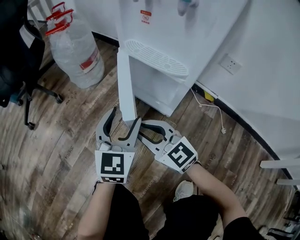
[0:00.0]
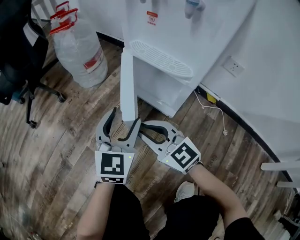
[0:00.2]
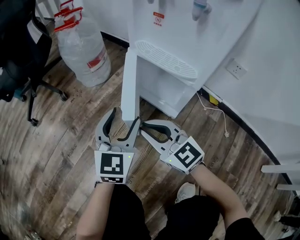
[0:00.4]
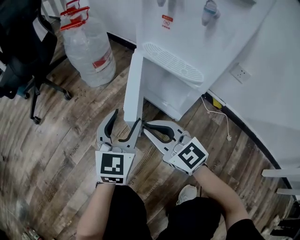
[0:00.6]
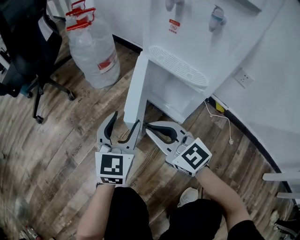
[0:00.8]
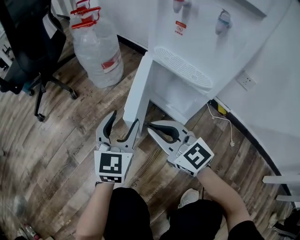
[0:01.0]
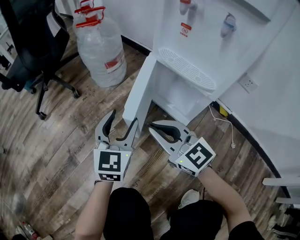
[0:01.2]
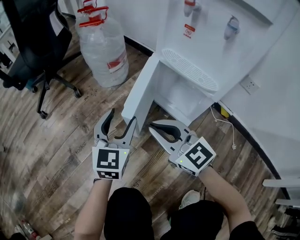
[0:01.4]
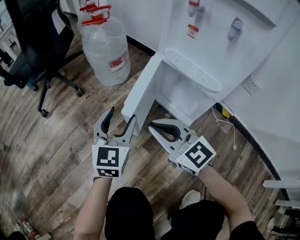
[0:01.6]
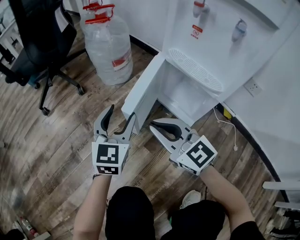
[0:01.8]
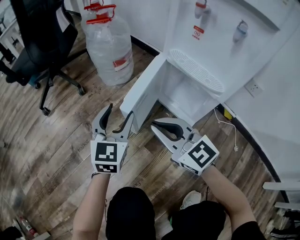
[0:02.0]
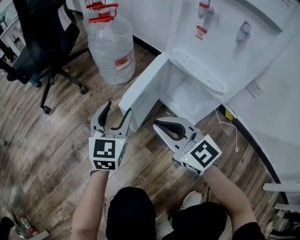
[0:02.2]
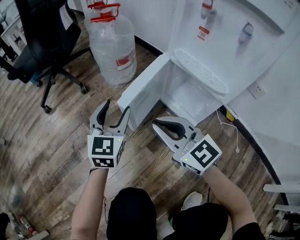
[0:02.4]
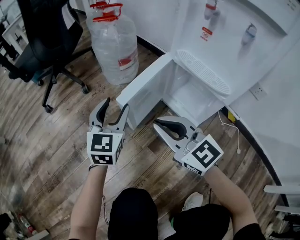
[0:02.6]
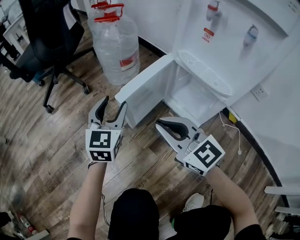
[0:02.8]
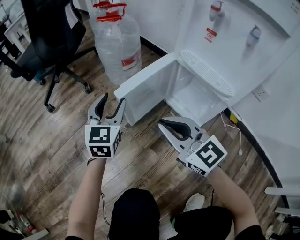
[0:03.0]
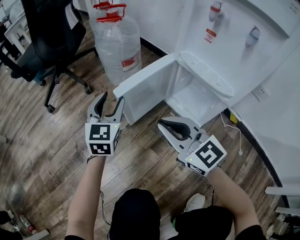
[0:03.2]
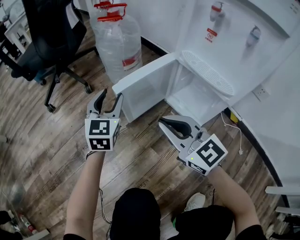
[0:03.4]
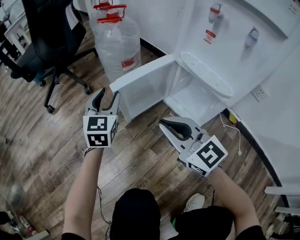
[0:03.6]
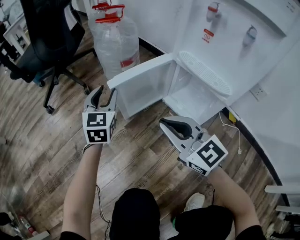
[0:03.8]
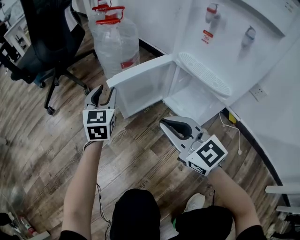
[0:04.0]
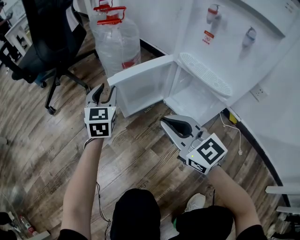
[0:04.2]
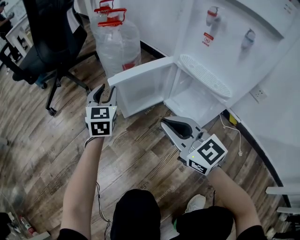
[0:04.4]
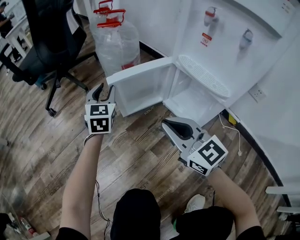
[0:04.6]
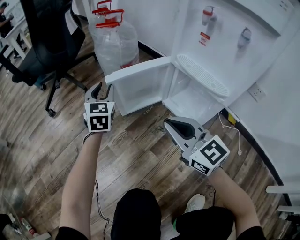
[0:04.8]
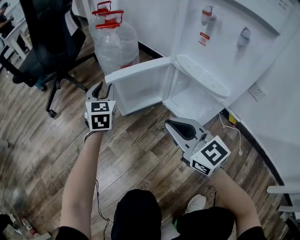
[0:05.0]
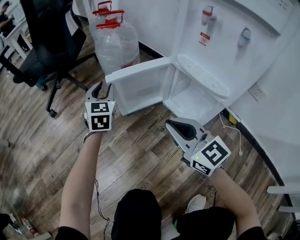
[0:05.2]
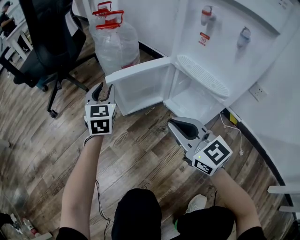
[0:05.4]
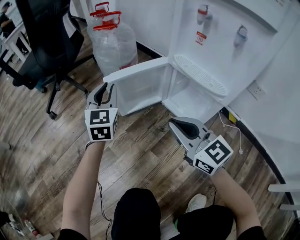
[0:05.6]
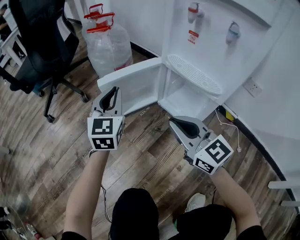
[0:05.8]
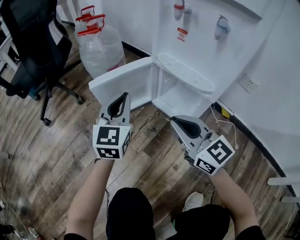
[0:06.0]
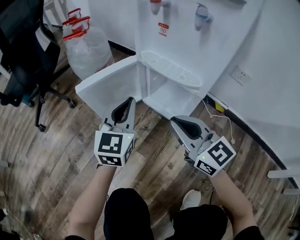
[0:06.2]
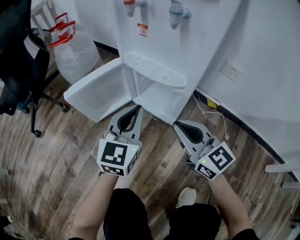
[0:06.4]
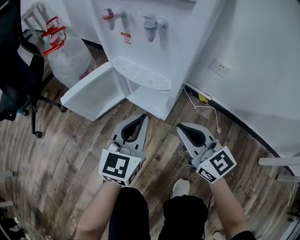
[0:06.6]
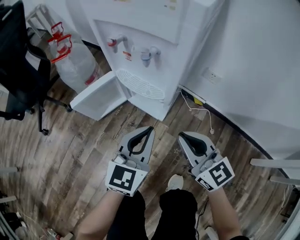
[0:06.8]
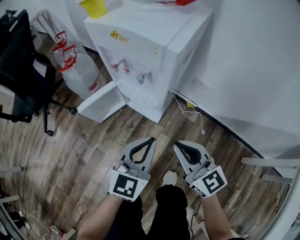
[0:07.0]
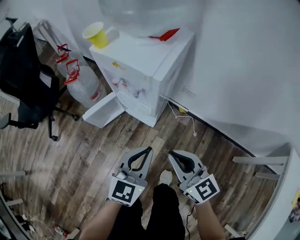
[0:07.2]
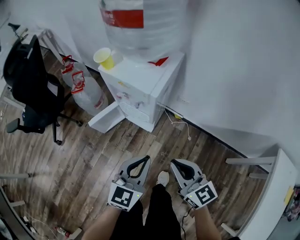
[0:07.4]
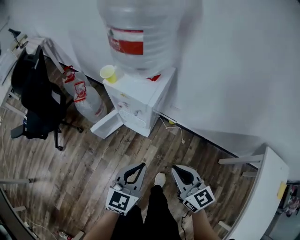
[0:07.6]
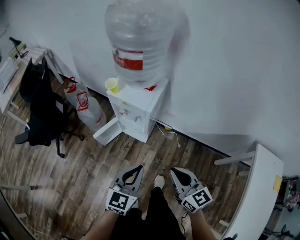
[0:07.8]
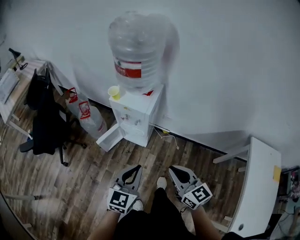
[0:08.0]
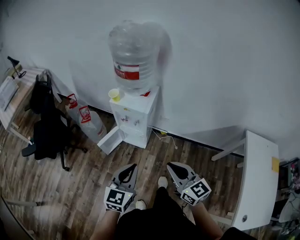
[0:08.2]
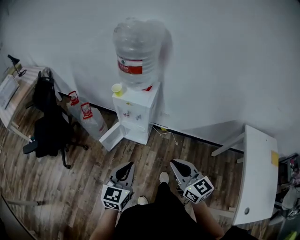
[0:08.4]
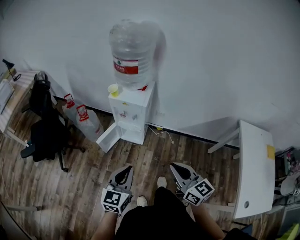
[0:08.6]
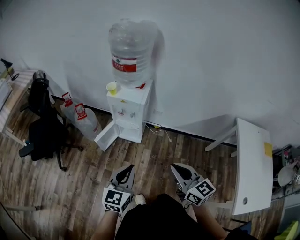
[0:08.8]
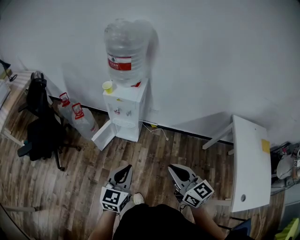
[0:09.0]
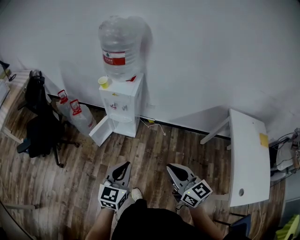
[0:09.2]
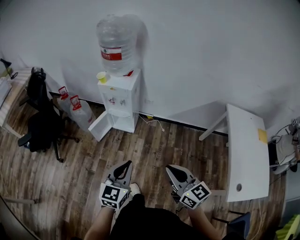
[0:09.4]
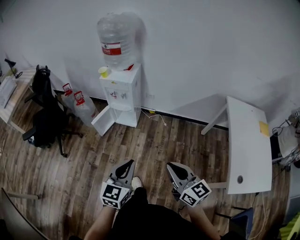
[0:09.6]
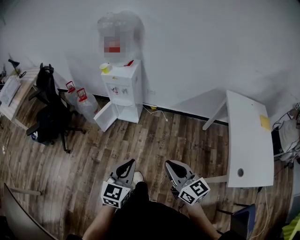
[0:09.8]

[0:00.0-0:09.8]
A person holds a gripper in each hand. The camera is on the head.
0:00.0 to 0:01.4: The left gripper goes about 10 cm to the left. The right gripper travels upward by some 5 cm.
0:01.4 to 0:02.8: The left gripper moves forward and to the left, roughly 10 cm.
0:02.8 to 0:04.2: The left gripper goes roughly 10 cm forward.
0:04.2 to 0:05.6: The grippers stay close to where they were, moving slightly.
0:05.6 to 0:07.0: The left gripper moves roughly 50 cm, and rotates roughly 40 degrees, while the right gripper moves some 30 cm.
0:07.0 to 0:08.4: The grippers both shift upward and backward by approximately 50 cm.
0:08.4 to 0:09.8: The grippers both shift backward by about 30 cm.

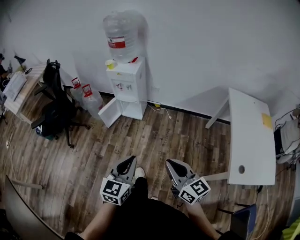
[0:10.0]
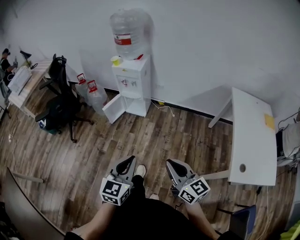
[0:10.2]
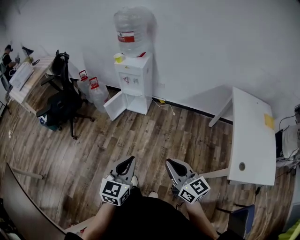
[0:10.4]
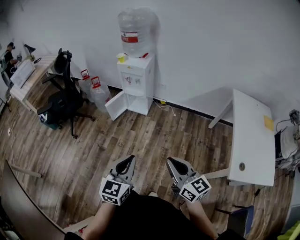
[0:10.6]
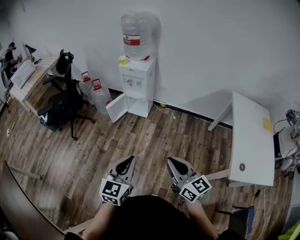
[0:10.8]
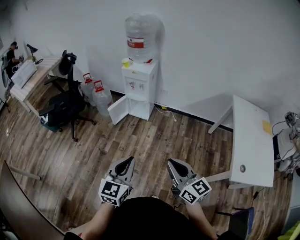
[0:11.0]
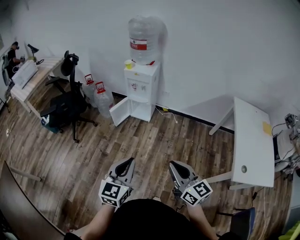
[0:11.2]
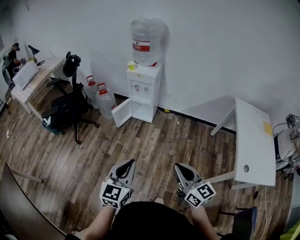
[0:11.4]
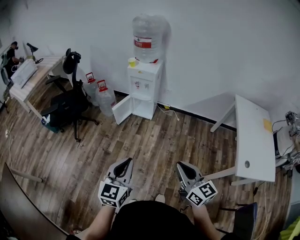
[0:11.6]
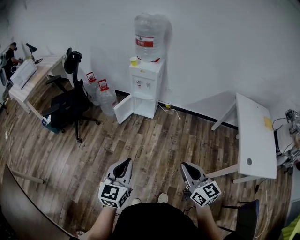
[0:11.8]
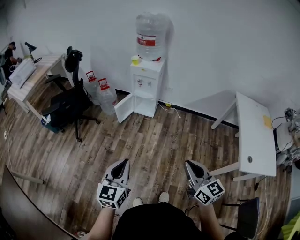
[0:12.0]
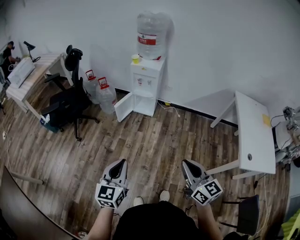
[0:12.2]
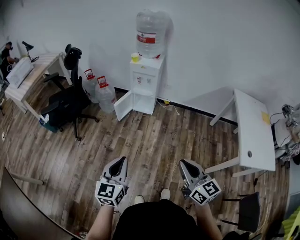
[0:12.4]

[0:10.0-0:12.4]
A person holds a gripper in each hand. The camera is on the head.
0:10.0 to 0:11.2: Both grippers travel together to the left and backward, some 15 cm.
0:11.2 to 0:12.4: The right gripper travels to the left by some 10 cm. The left gripper is displaced to the left by roughly 15 cm.

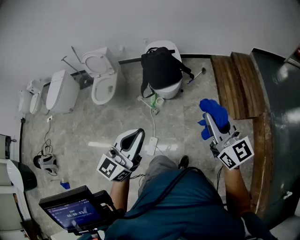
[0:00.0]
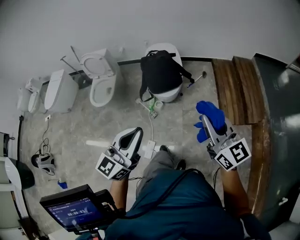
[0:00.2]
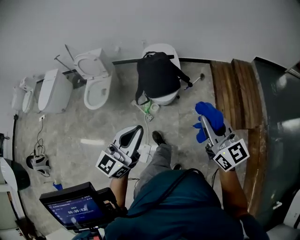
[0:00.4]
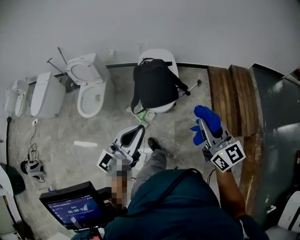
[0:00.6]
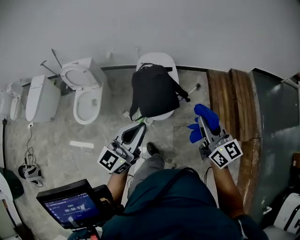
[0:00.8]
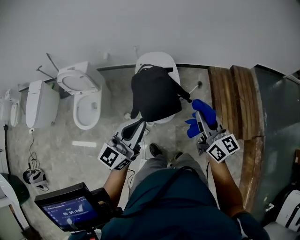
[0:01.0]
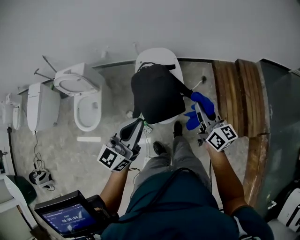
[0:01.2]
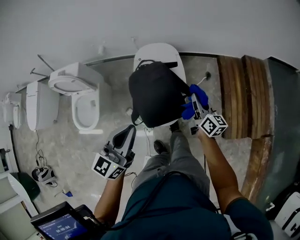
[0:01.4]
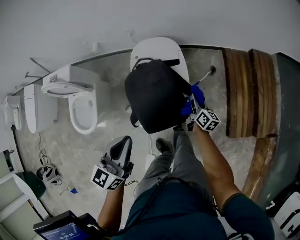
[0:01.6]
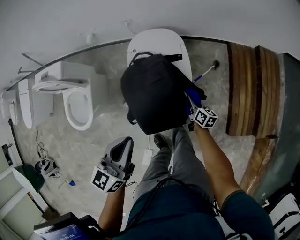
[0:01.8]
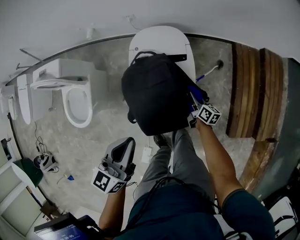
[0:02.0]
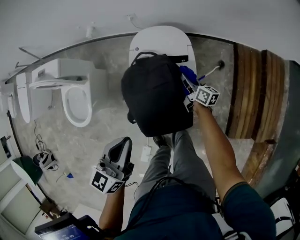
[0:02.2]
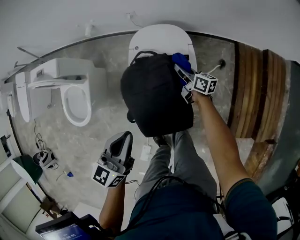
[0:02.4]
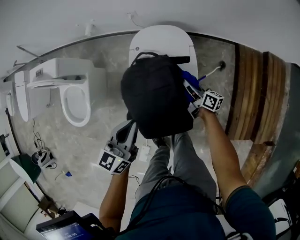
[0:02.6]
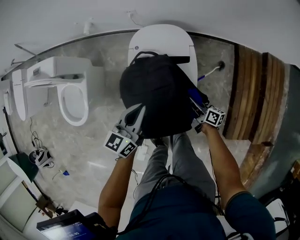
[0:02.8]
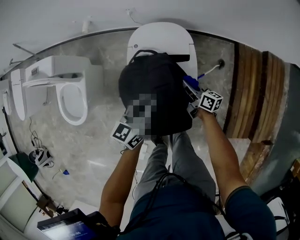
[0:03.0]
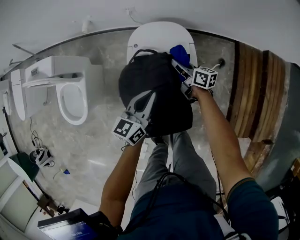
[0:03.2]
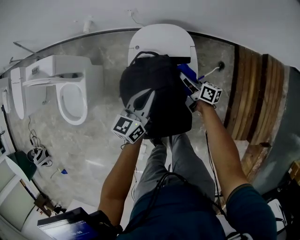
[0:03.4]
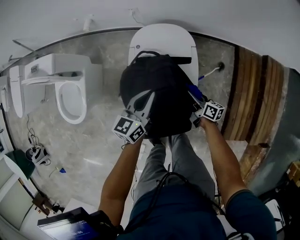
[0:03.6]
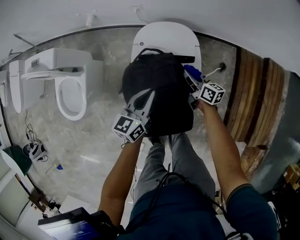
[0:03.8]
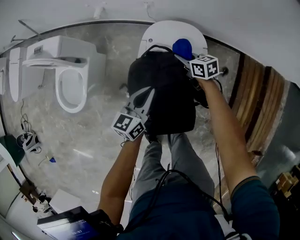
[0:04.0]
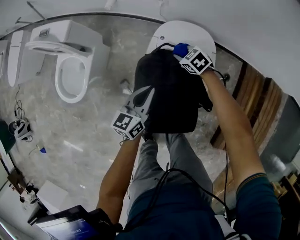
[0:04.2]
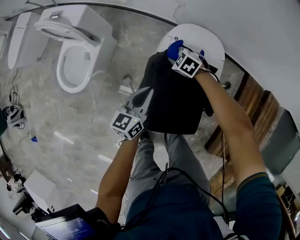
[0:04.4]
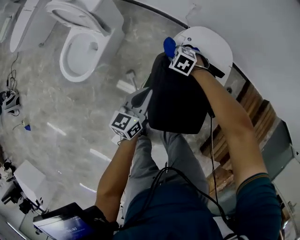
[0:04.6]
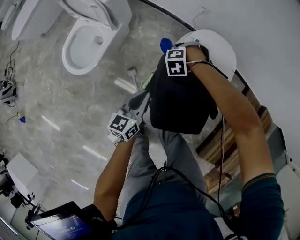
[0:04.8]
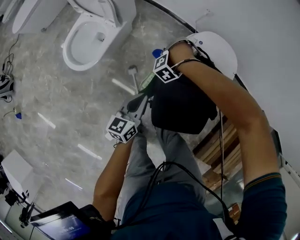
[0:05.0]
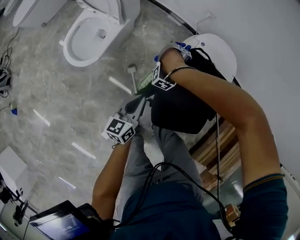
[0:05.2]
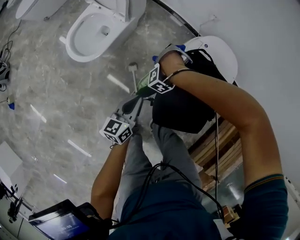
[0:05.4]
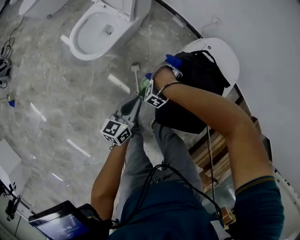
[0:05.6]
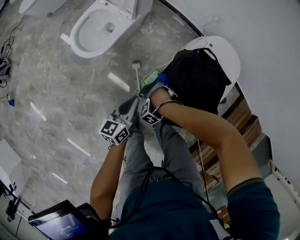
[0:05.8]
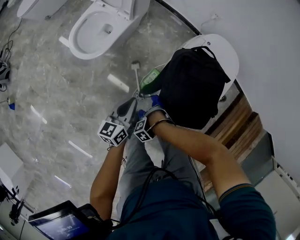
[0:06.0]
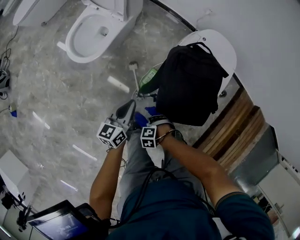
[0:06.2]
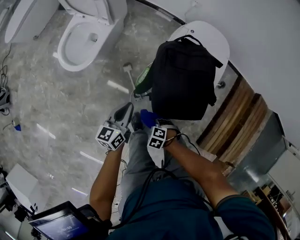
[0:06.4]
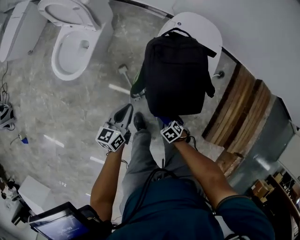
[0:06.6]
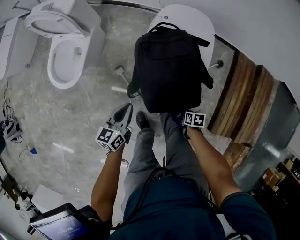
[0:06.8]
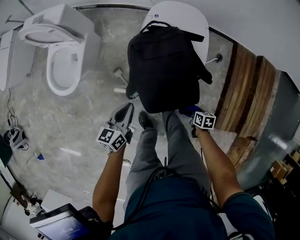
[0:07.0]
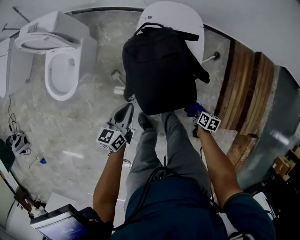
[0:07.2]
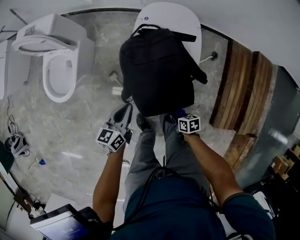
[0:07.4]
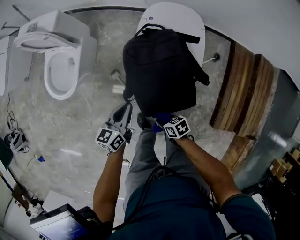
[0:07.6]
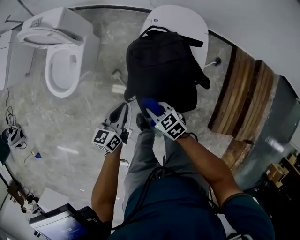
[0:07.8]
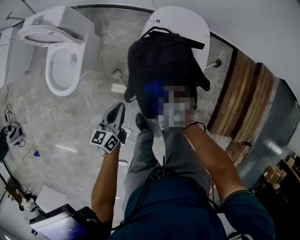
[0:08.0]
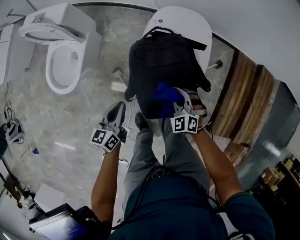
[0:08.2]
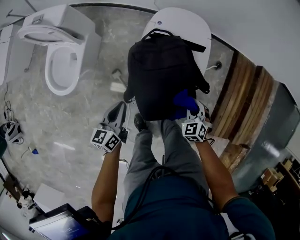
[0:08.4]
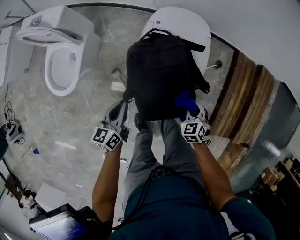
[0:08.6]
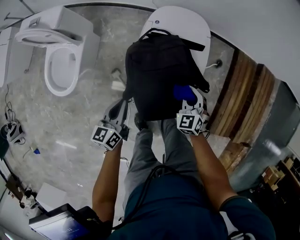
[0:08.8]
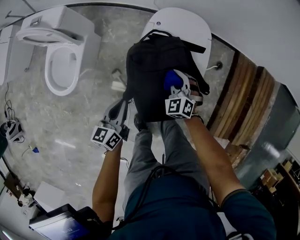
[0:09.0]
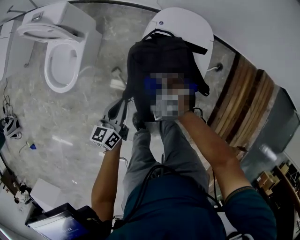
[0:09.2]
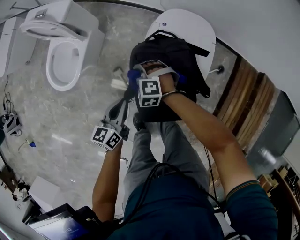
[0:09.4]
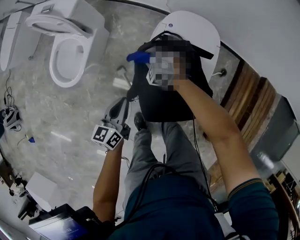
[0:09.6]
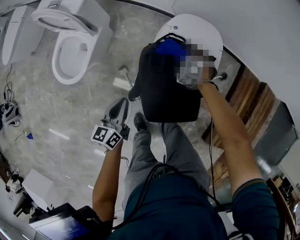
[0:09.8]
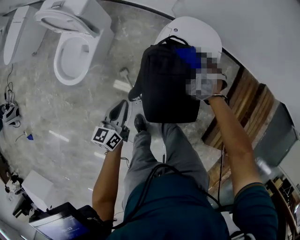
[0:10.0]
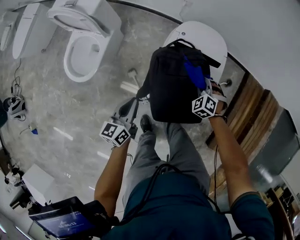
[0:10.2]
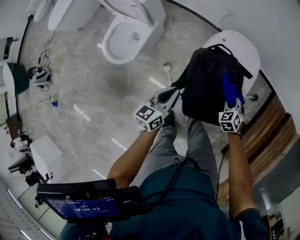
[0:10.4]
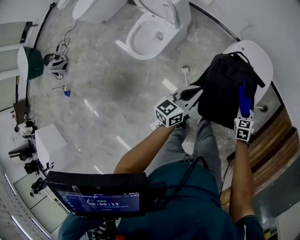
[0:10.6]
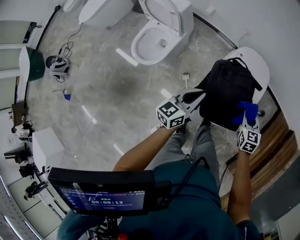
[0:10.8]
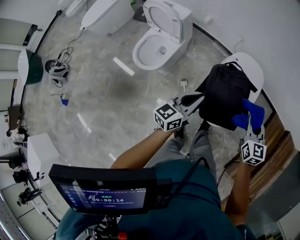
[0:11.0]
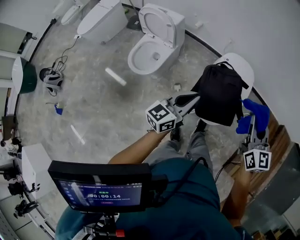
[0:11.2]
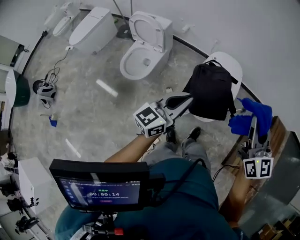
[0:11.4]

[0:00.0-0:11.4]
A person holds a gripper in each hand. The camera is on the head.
0:00.0 to 0:01.4: The two grippers travel together, forward, some 50 cm. The right gripper moves downward, about 30 cm, and changes its angle by approximately 40 degrees.
0:01.4 to 0:02.8: The left gripper heads downward and forward, covering roughly 30 cm; the right gripper goes up and down, about 30 cm each way, reversing 2 times, and changes its angle by roughly 40 degrees.
0:02.8 to 0:04.2: The left gripper moves about 5 cm; the right gripper moves some 25 cm, and rotates around the line of its fingers by approximately 70 degrees, counterclockwise from behind.
0:04.2 to 0:05.6: The right gripper shifts by approximately 30 cm, and twists some 110 degrees counterclockwise, seen from behind, while the left gripper moves approximately 25 cm, and rotates roughly 20 degrees.
0:05.6 to 0:07.2: The left gripper moves some 10 cm, and changes its angle by approximately 30 degrees, while the right gripper shifts by about 40 cm, and twists about 150 degrees counterclockwise, seen from behind.
0:07.2 to 0:08.6: The right gripper rotates around the line of its fingers by some 70 degrees, counterclockwise from behind. The left gripper shifts by about 5 cm.
0:08.6 to 0:10.0: The right gripper moves up and down over about 10 cm, changing direction 2 times, and rotates around the line of its fingers by roughly 40 degrees, counterclockwise from behind.
0:10.0 to 0:11.4: The right gripper travels upward and backward by approximately 60 cm, and points its fingers approximately 50 degrees further upward, while the left gripper moves upward and backward, about 35 cm, and rotates roughly 40 degrees.
